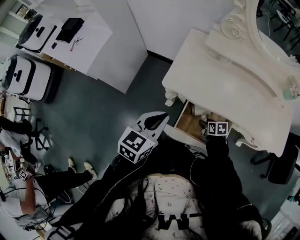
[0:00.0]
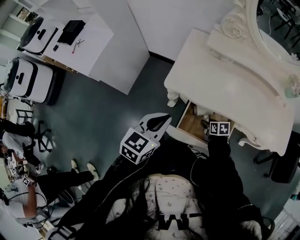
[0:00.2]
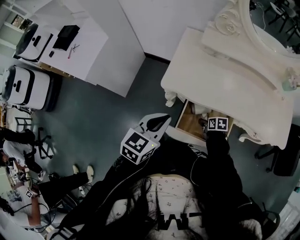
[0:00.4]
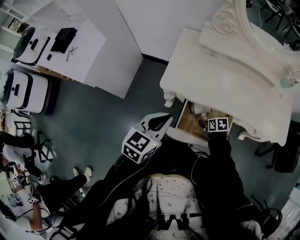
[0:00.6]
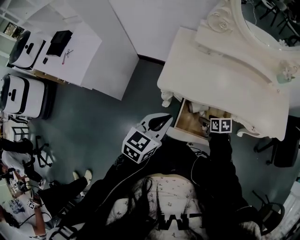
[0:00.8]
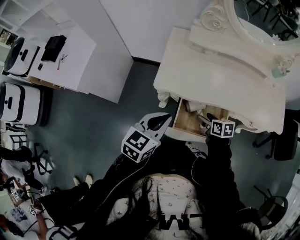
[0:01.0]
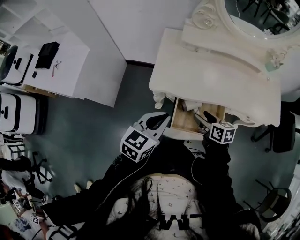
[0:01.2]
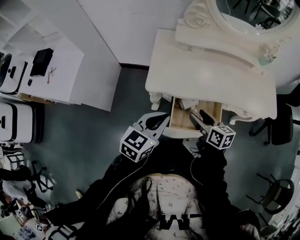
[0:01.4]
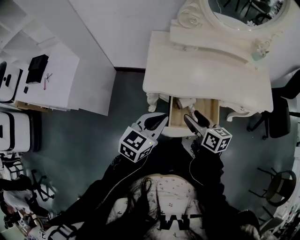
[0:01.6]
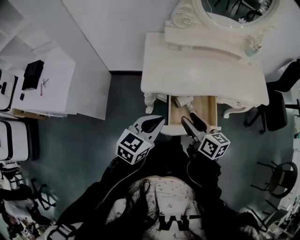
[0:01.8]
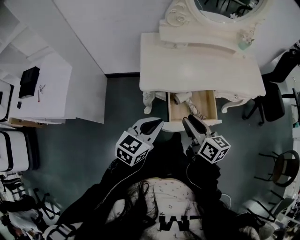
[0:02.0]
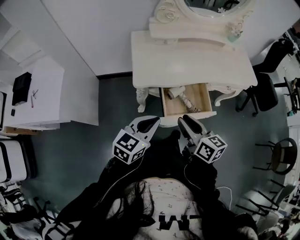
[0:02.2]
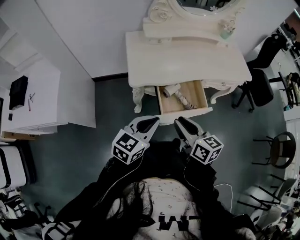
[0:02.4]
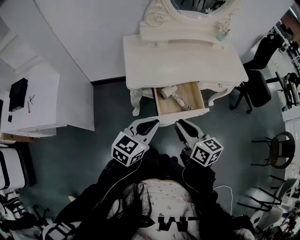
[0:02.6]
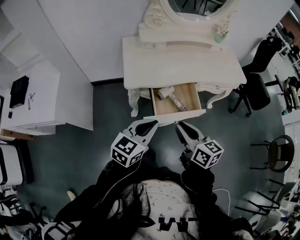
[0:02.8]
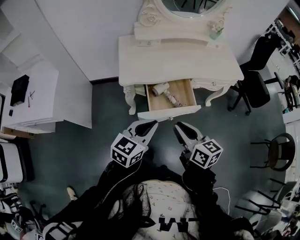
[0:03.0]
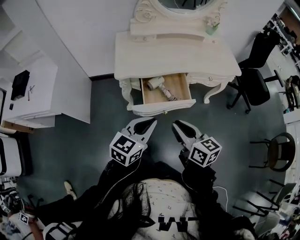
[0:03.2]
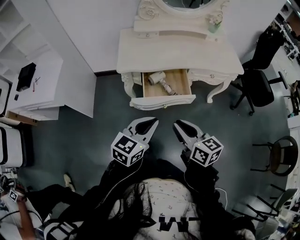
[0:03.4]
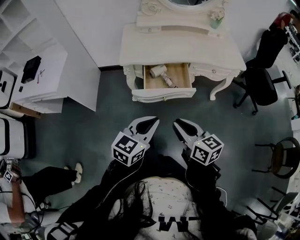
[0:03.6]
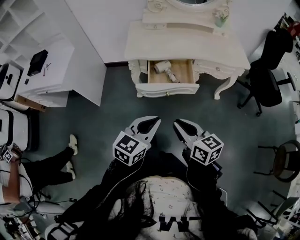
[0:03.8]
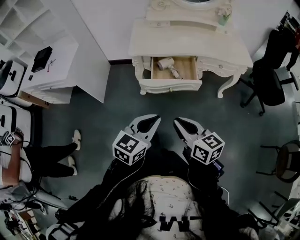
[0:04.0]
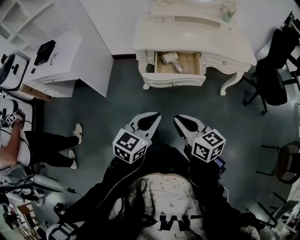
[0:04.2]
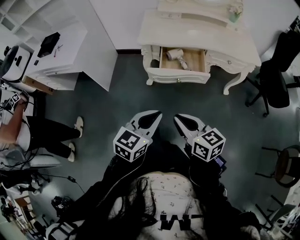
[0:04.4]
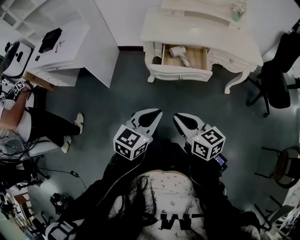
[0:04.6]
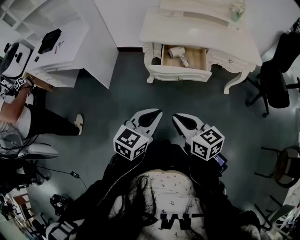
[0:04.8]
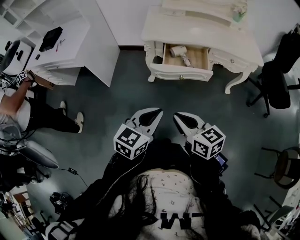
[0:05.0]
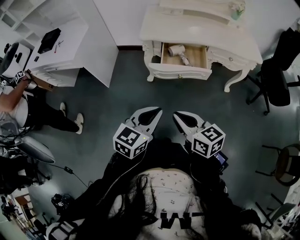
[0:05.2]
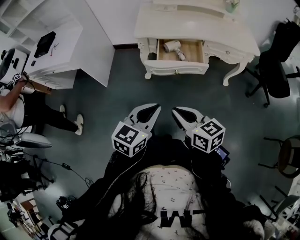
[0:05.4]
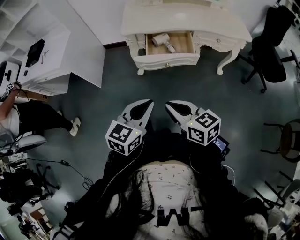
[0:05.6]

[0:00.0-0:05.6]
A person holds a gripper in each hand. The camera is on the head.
0:00.0 to 0:01.4: The right gripper moves upward, roughly 25 cm, and tips its fingers upward by approximately 30 degrees.
0:01.4 to 0:02.8: The left gripper goes some 10 cm backward. The right gripper moves backward and upward, roughly 20 cm, and closes.
0:02.8 to 0:04.2: The left gripper shifts about 25 cm backward and to the right; the right gripper moves backward, about 20 cm, and changes its angle by some 20 degrees.
0:04.2 to 0:05.6: The grippers stay close to where they were, moving slightly.

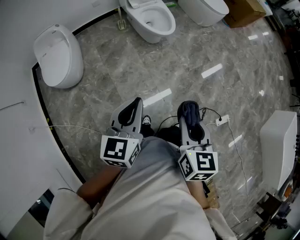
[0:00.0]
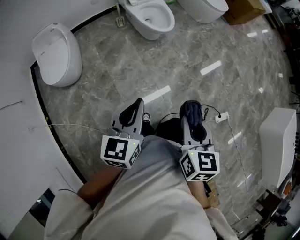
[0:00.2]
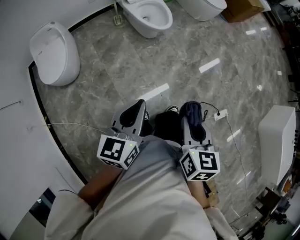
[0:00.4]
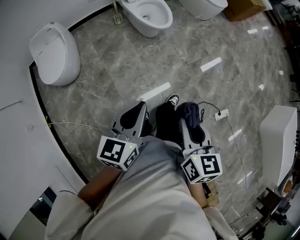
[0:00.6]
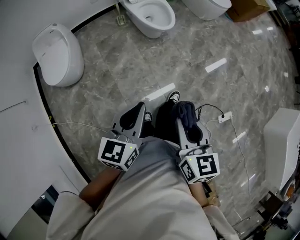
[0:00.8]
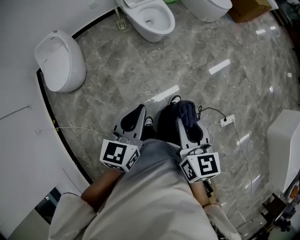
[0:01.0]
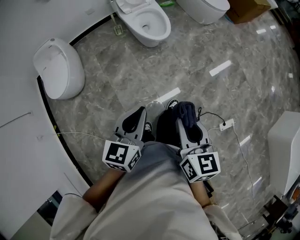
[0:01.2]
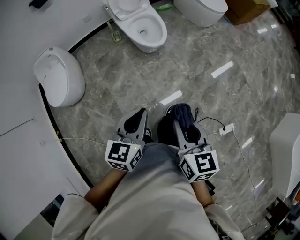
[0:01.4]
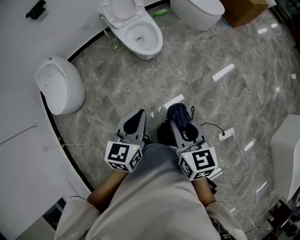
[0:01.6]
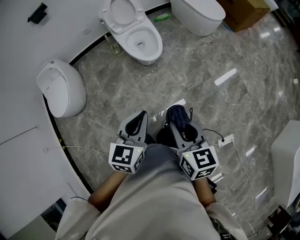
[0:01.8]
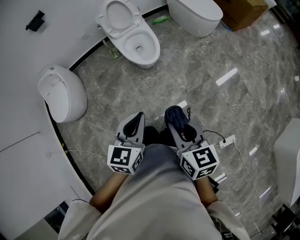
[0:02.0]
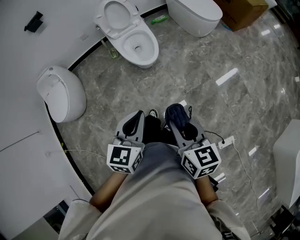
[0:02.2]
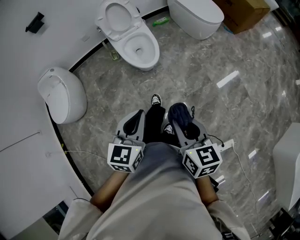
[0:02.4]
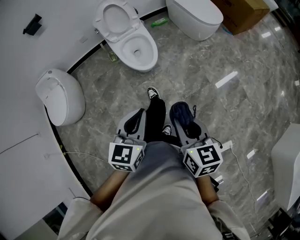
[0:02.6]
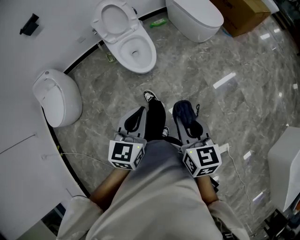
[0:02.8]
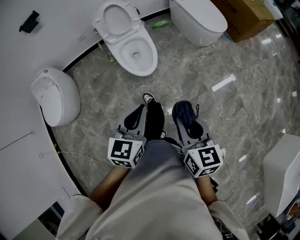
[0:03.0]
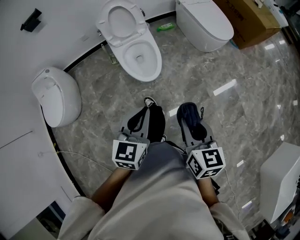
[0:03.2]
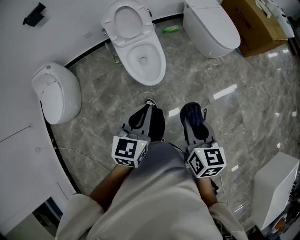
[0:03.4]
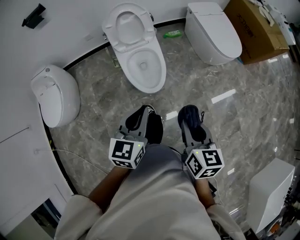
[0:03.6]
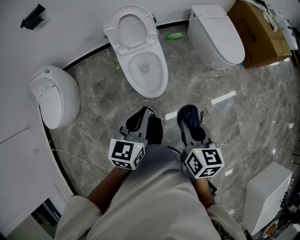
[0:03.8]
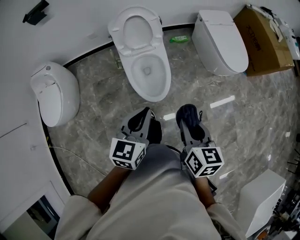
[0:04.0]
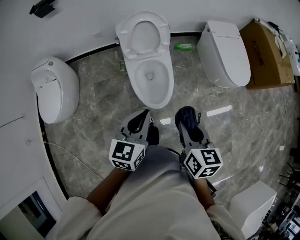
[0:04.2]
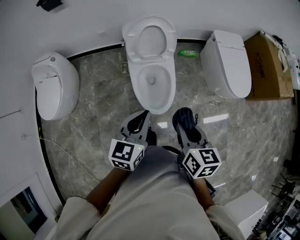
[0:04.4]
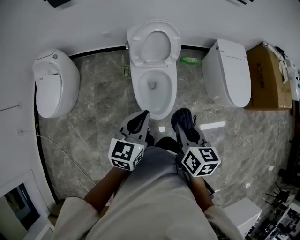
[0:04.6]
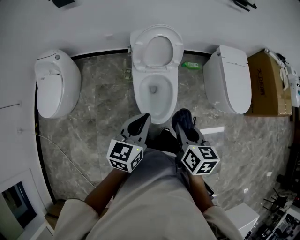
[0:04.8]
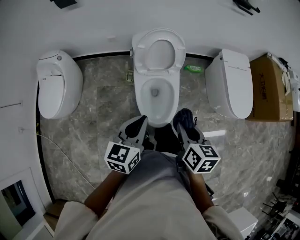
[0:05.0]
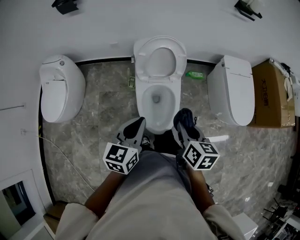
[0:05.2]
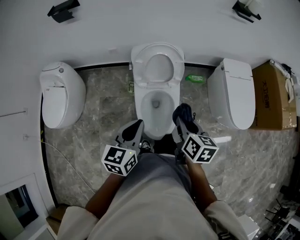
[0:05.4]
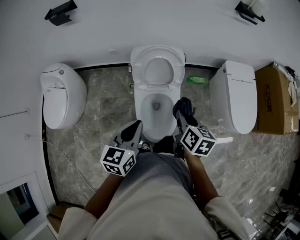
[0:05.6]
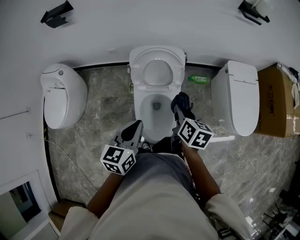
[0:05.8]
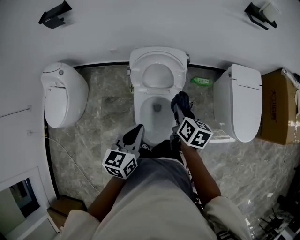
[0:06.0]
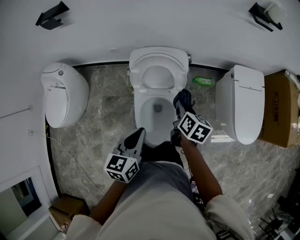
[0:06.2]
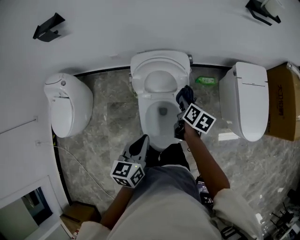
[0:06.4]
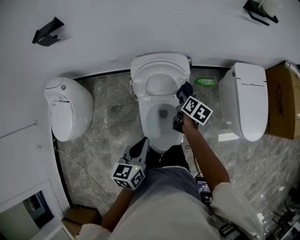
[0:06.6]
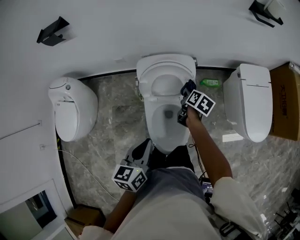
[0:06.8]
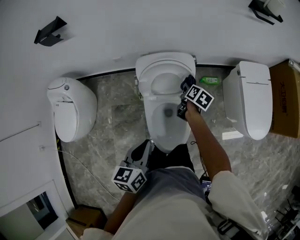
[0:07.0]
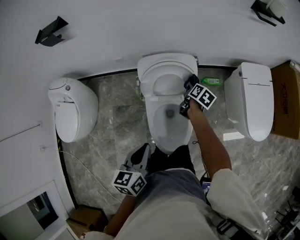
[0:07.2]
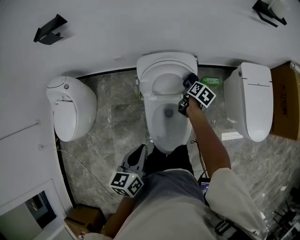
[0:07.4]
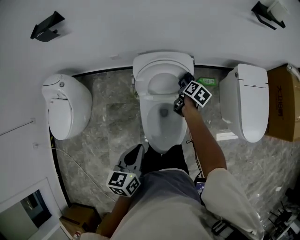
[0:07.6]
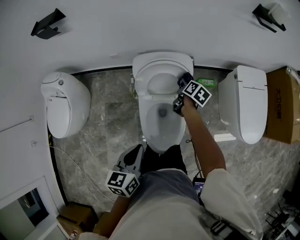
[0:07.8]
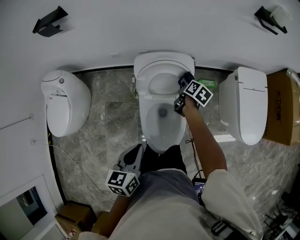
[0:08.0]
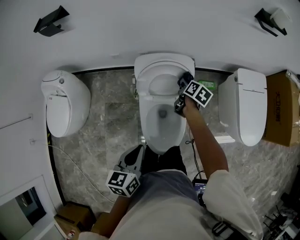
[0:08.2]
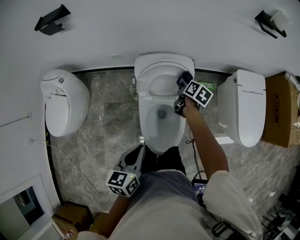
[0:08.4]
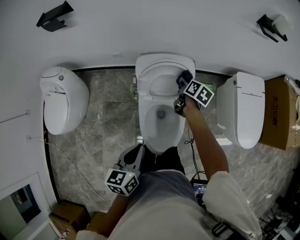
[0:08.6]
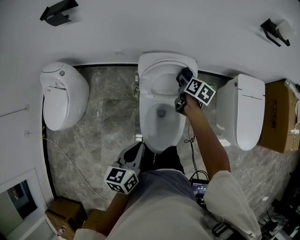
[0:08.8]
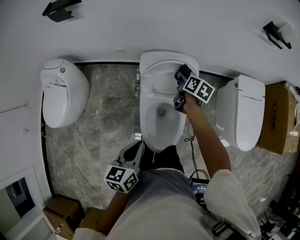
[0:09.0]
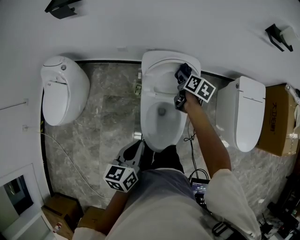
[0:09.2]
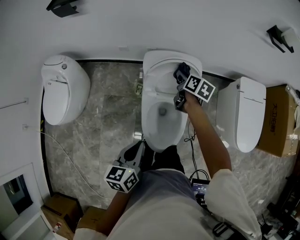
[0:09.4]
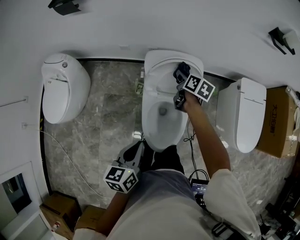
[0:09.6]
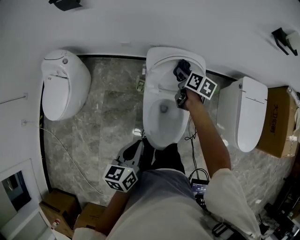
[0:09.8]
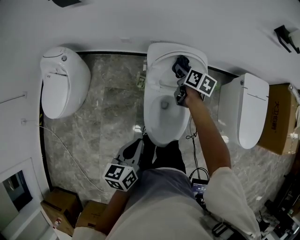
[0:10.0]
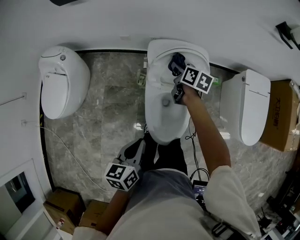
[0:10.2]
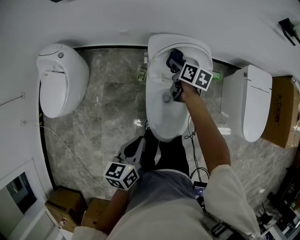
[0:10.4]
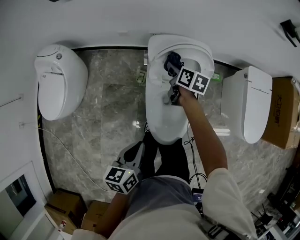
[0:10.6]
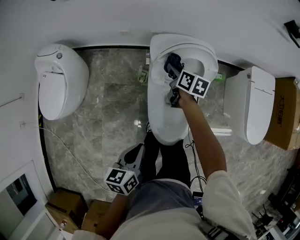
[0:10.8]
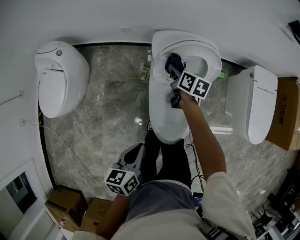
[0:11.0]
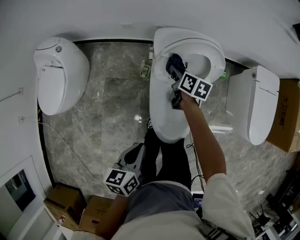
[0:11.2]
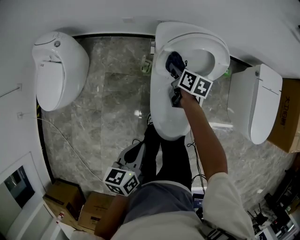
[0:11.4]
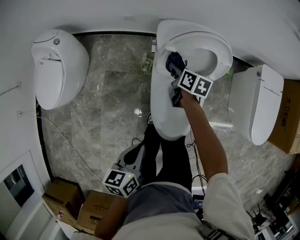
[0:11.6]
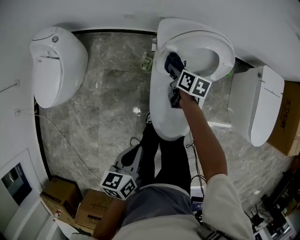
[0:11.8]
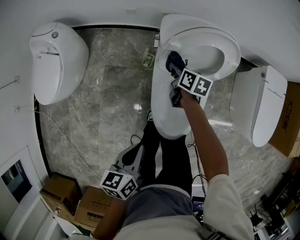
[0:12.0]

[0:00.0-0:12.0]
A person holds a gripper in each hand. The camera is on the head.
0:00.0 to 0:01.6: Both grippers move forward and to the right, approximately 25 cm.
0:01.6 to 0:03.0: The two grippers go some 20 cm forward and to the right.
0:03.0 to 0:04.4: Both grippers move forward, approximately 30 cm.
0:04.4 to 0:06.0: The left gripper moves forward, some 20 cm; the right gripper is displaced forward by about 35 cm.
0:06.0 to 0:07.6: The left gripper shifts roughly 5 cm to the left, while the right gripper travels forward and downward by approximately 25 cm, and changes its angle by about 20 degrees.
0:07.6 to 0:09.0: The right gripper moves to the left and upward, about 10 cm.
0:09.0 to 0:10.4: The right gripper heads to the left, covering approximately 10 cm. The left gripper goes about 5 cm to the left.
0:10.4 to 0:12.0: The right gripper is displaced downward by approximately 15 cm, while the left gripper moves downward, approximately 10 cm.

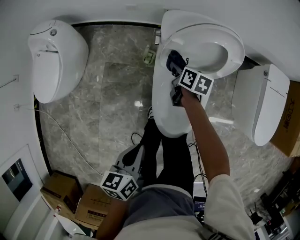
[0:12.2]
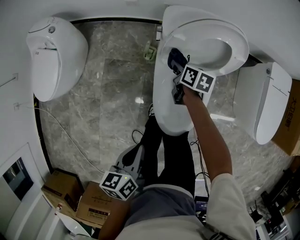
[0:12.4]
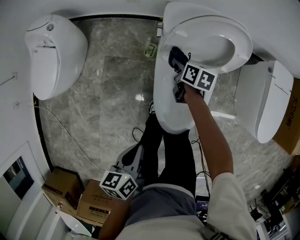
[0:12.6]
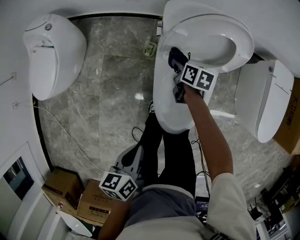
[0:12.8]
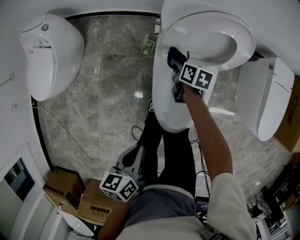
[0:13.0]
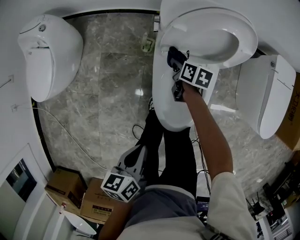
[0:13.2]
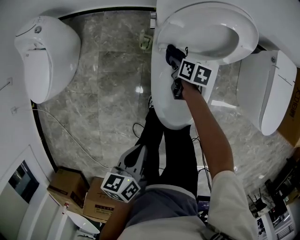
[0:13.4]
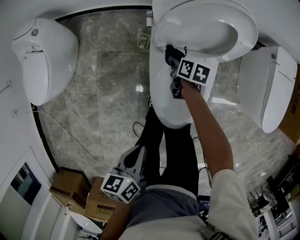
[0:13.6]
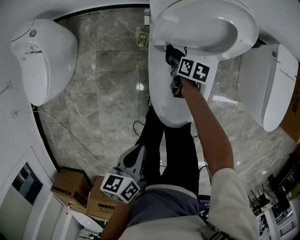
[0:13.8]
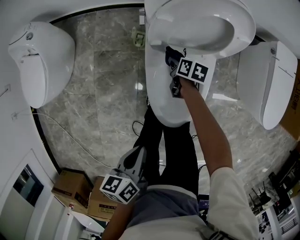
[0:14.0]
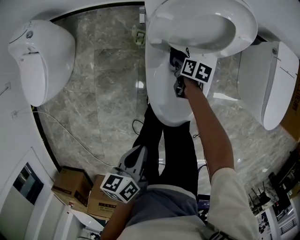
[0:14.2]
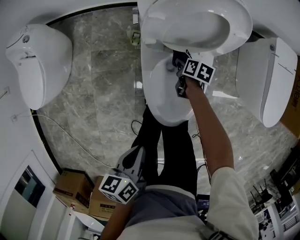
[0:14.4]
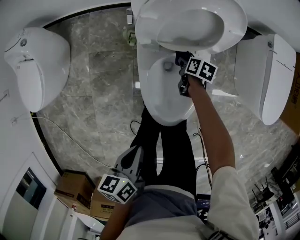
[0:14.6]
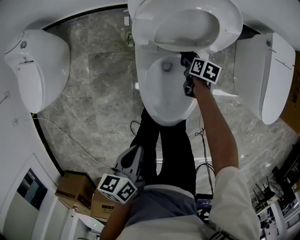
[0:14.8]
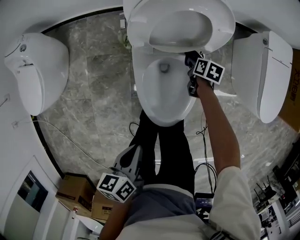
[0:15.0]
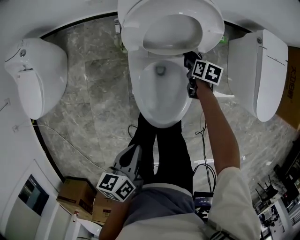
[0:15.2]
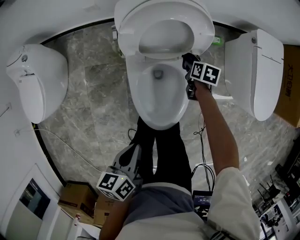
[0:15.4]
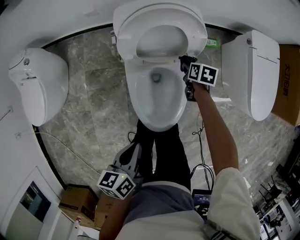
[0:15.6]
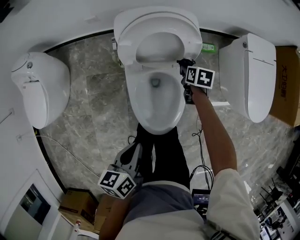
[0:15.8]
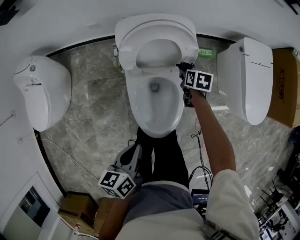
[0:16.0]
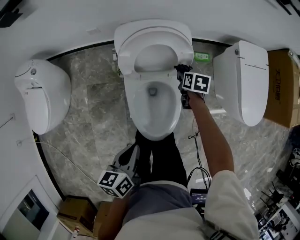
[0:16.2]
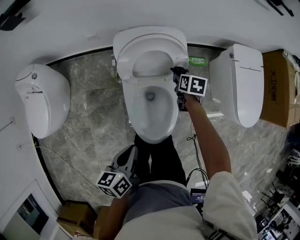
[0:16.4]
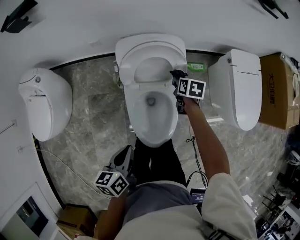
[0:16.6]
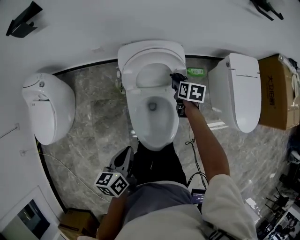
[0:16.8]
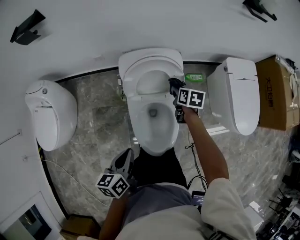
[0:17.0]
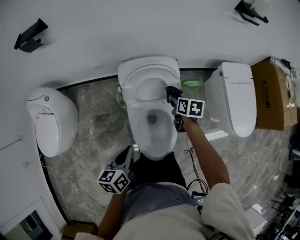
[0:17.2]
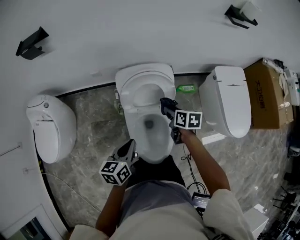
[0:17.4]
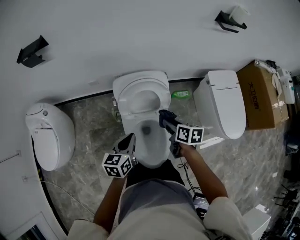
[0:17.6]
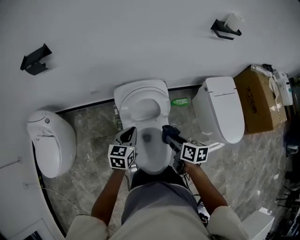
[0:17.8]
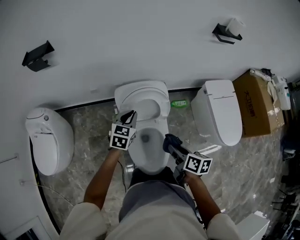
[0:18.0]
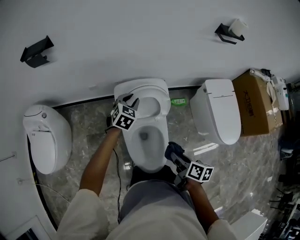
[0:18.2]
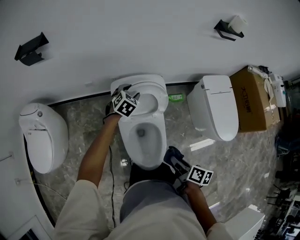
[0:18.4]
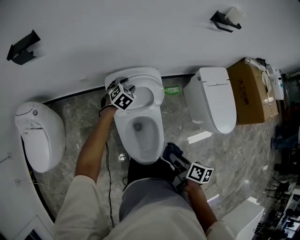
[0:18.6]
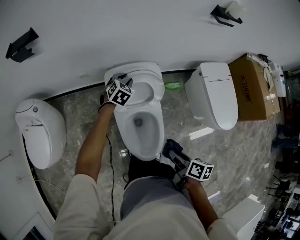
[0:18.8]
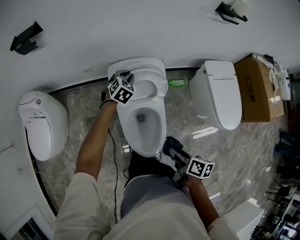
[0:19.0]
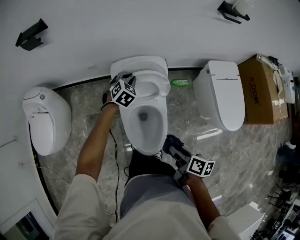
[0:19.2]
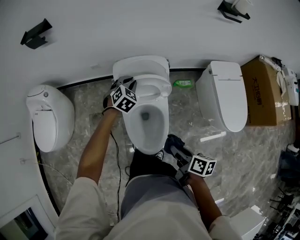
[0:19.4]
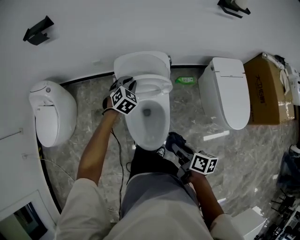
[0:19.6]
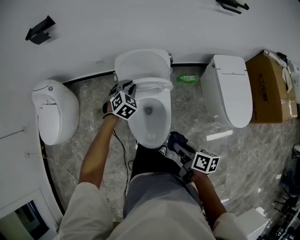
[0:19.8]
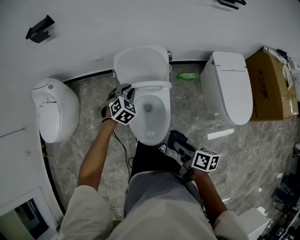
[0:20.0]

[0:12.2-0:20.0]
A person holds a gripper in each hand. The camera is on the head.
0:12.2 to 0:13.8: The left gripper changes place by about 5 cm; the right gripper moves downward, roughly 10 cm.
0:13.8 to 0:15.4: The left gripper is displaced to the right by roughly 5 cm. Meanwhile the right gripper travels to the right by roughly 20 cm.
0:15.4 to 0:16.8: The left gripper shifts roughly 10 cm upward; the right gripper heads upward, covering some 15 cm.
0:16.8 to 0:18.4: The left gripper moves forward, some 35 cm, twists about 70 degrees clockwise, seen from behind, and opens; the right gripper goes some 35 cm backward and upward, and turns by roughly 30 degrees.
0:18.4 to 0:20.0: The right gripper shifts approximately 10 cm backward and to the right. The left gripper heads backward, covering approximately 20 cm, and closes.
